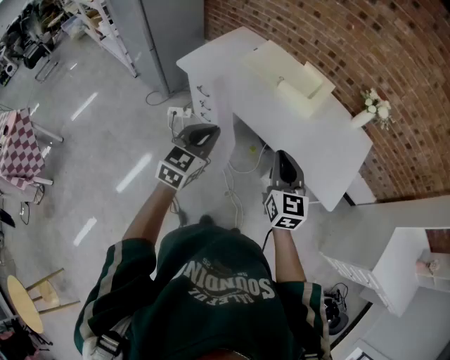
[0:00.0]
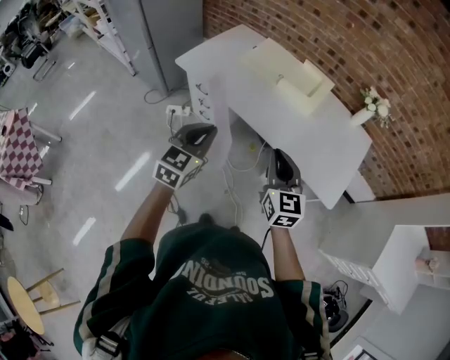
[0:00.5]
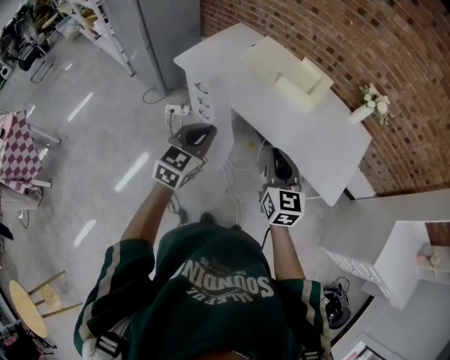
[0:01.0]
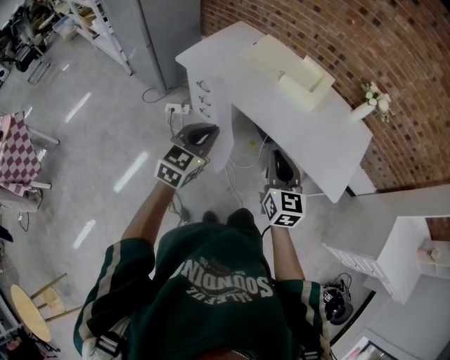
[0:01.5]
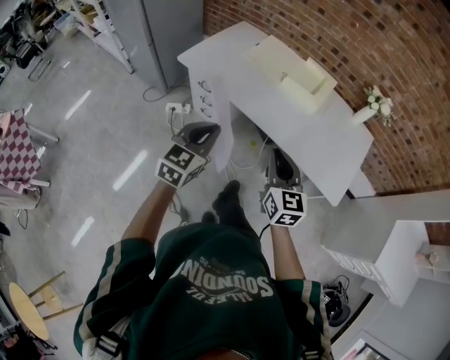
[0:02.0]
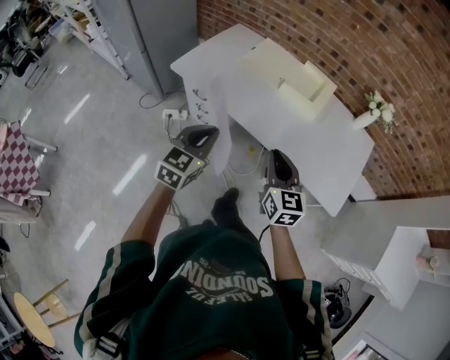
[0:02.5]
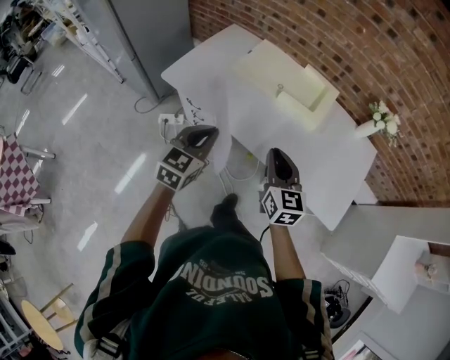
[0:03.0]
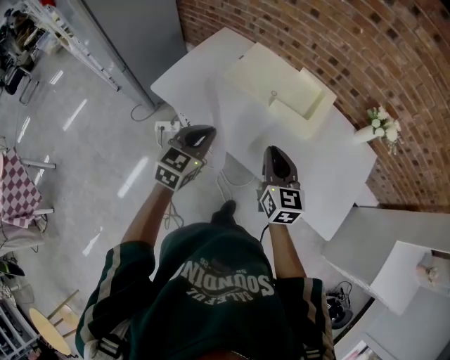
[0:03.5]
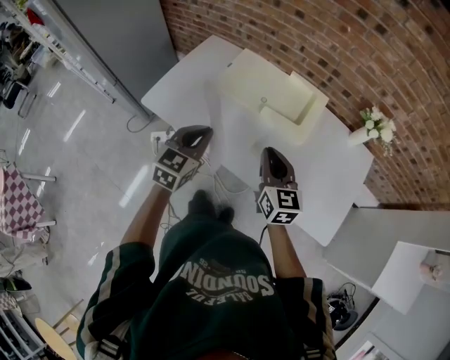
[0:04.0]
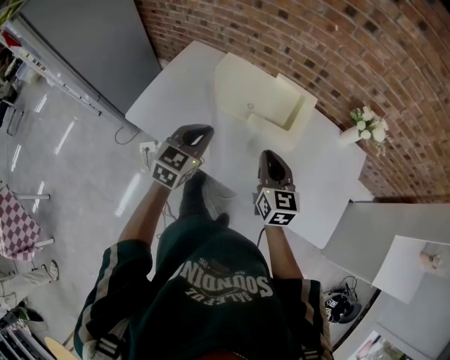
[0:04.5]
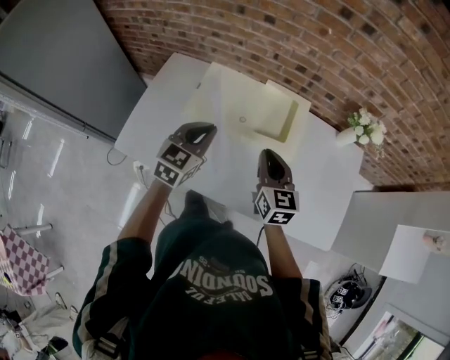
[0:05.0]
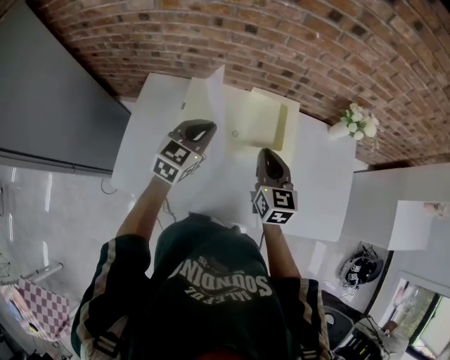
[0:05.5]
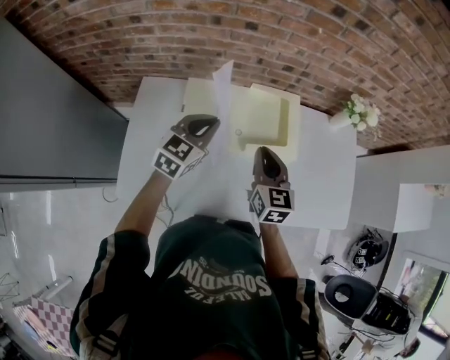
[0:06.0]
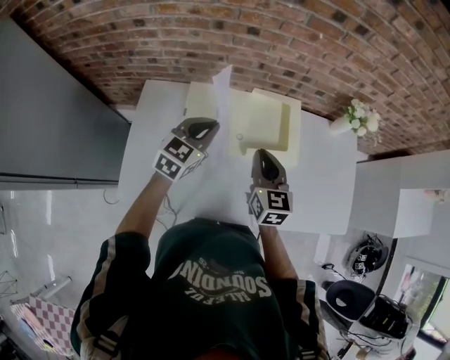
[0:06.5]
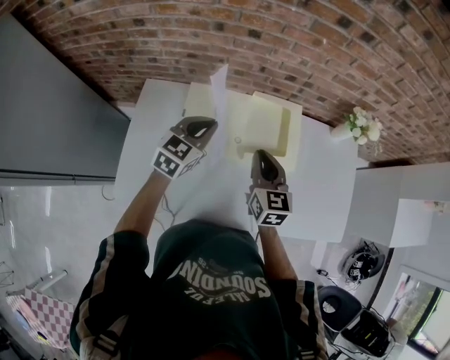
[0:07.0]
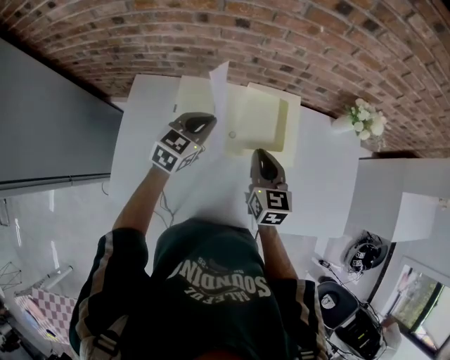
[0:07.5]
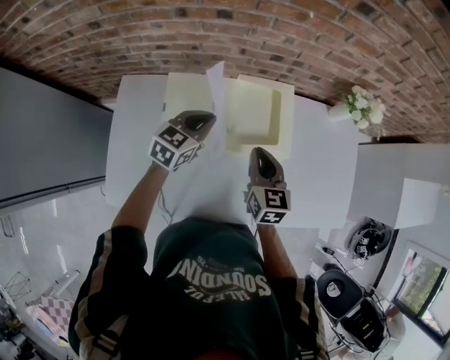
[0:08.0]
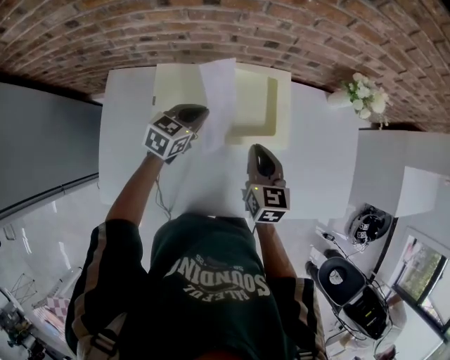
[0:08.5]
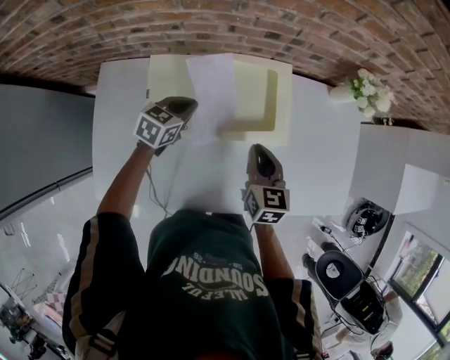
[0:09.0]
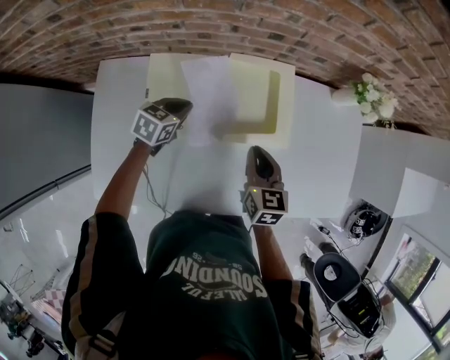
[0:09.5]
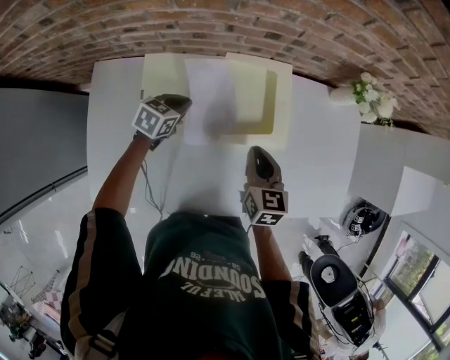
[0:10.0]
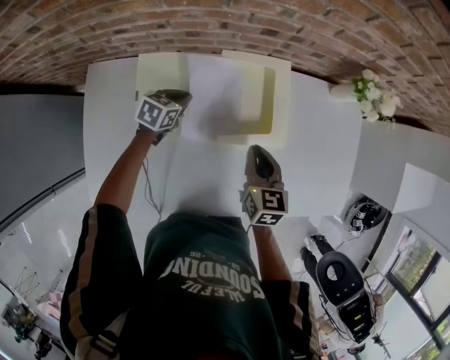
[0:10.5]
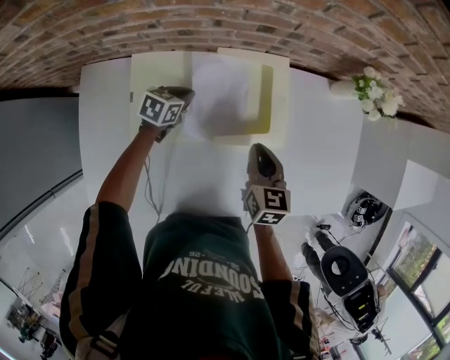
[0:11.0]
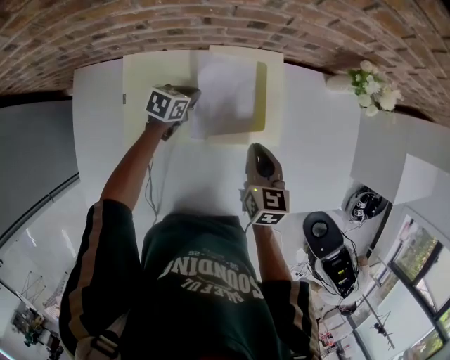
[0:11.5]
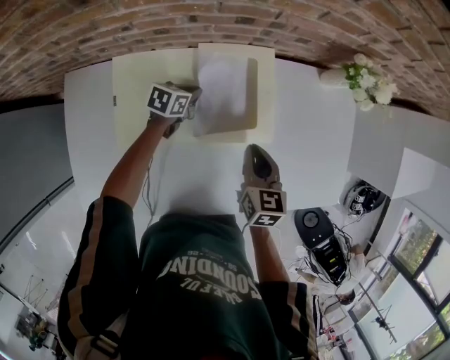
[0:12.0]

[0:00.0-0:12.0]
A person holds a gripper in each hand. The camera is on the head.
0:00.0 to 0:02.0: The right gripper moves to the left, about 5 cm.
0:02.0 to 0:04.0: The grippers both shift forward by approximately 30 cm.
0:04.0 to 0:06.0: The right gripper shifts by some 25 cm, and swivels some 30 degrees, while the left gripper changes place by some 30 cm, and rotates some 30 degrees.
0:06.0 to 0:08.0: Both grippers move forward and downward, roughly 10 cm.
0:08.0 to 0:10.0: The right gripper is displaced downward by roughly 5 cm; the left gripper heads downward, covering some 15 cm, and turns by about 20 degrees.
0:10.0 to 0:12.0: The right gripper ends up some 5 cm from where it was; the left gripper goes approximately 15 cm forward, to the right and downward.

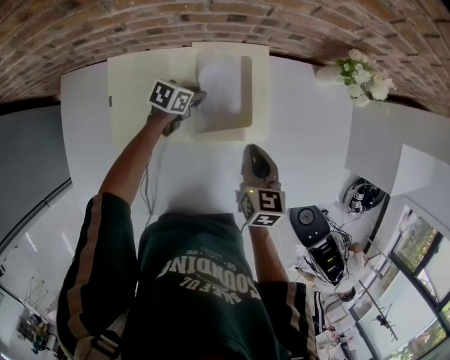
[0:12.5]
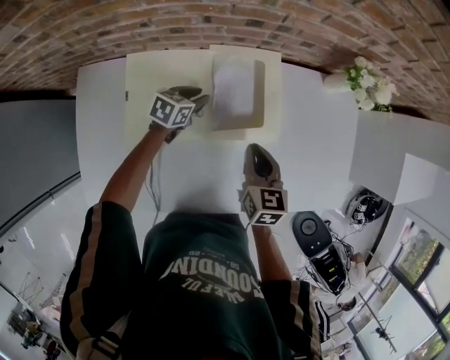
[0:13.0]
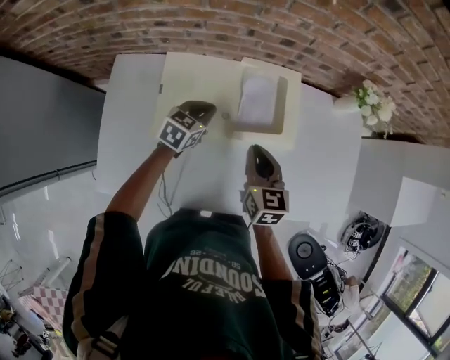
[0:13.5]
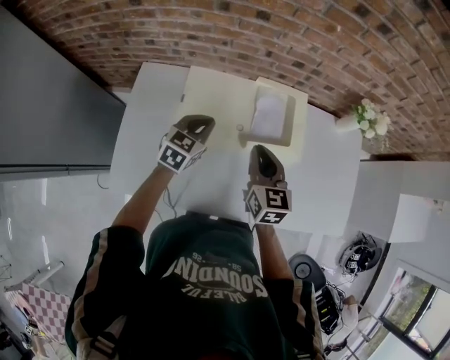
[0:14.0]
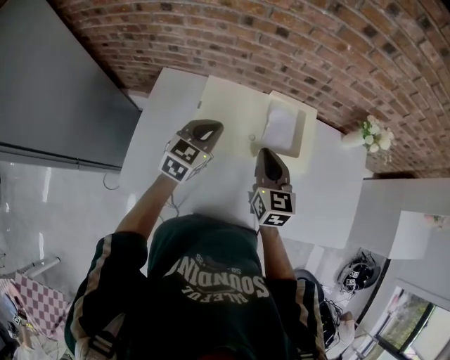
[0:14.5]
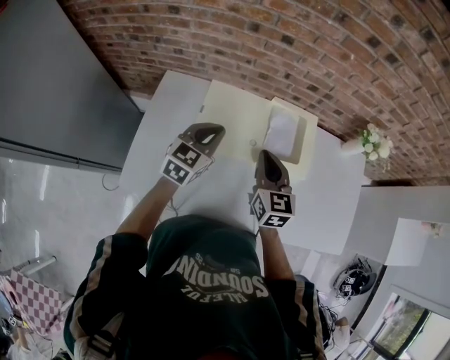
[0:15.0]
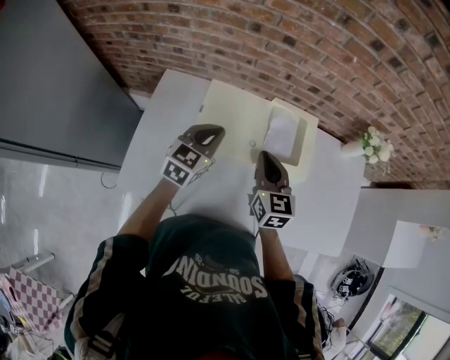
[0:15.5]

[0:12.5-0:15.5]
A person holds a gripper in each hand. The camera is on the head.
0:12.5 to 0:14.0: The left gripper goes roughly 20 cm upward, swivels roughly 40 degrees, and closes its fingers, while the right gripper moves some 20 cm, and changes its angle by some 20 degrees.
0:14.0 to 0:15.5: The left gripper heads upward, covering about 5 cm.

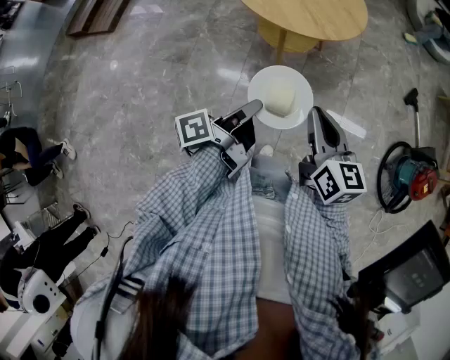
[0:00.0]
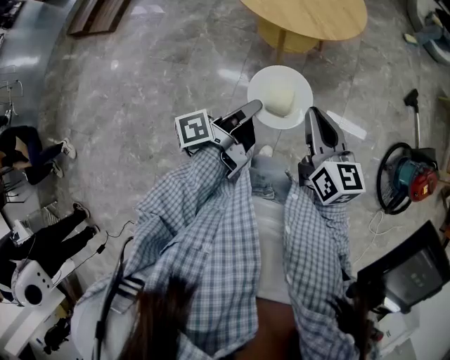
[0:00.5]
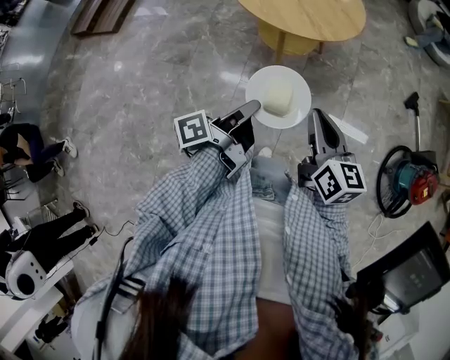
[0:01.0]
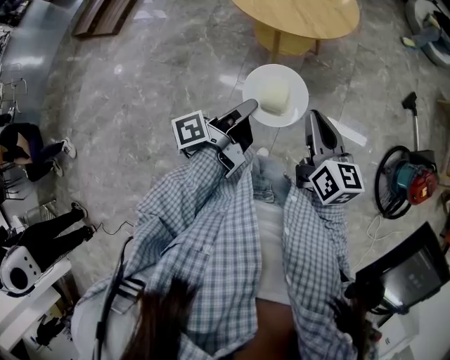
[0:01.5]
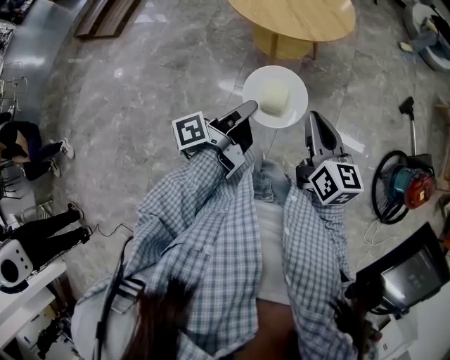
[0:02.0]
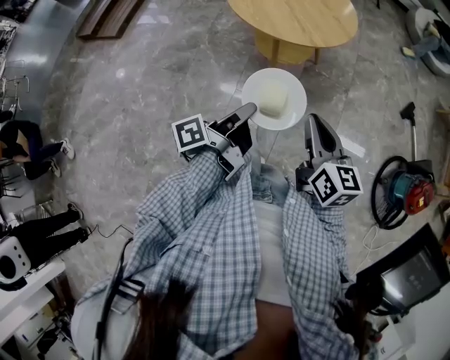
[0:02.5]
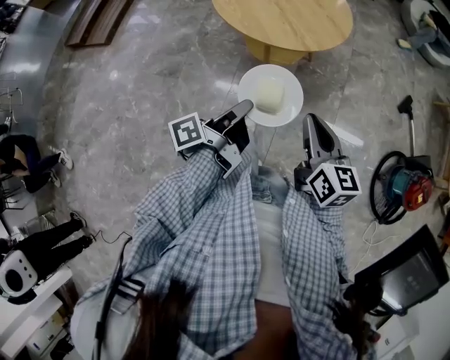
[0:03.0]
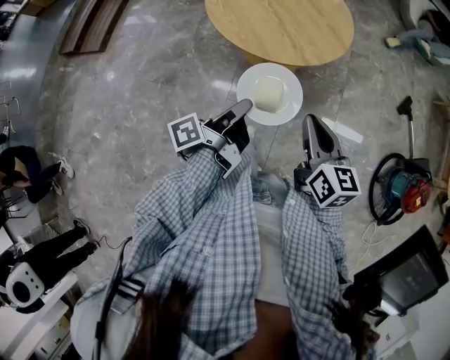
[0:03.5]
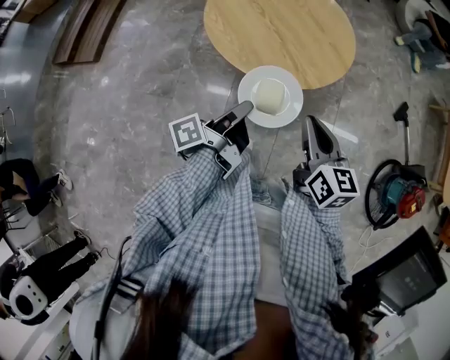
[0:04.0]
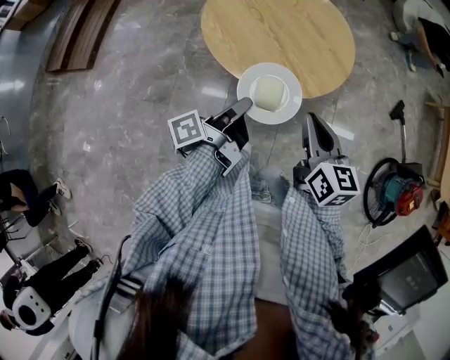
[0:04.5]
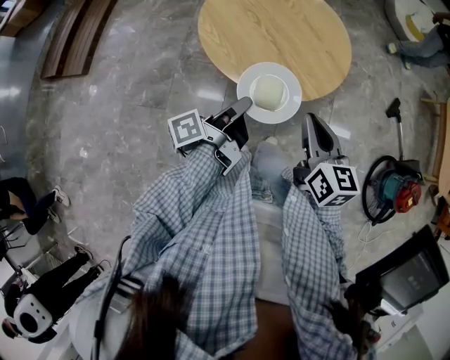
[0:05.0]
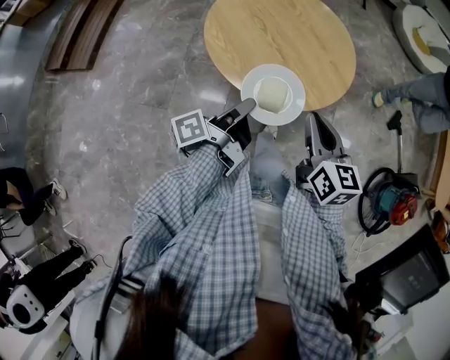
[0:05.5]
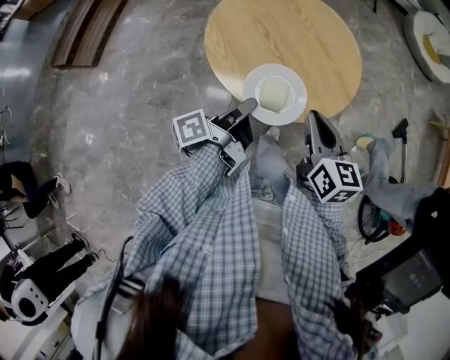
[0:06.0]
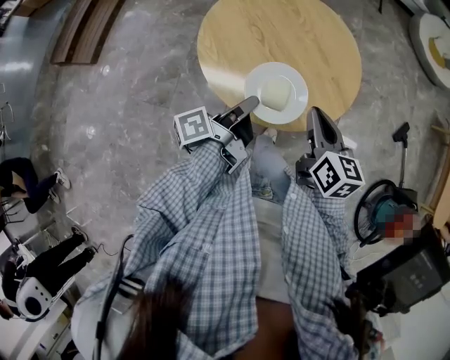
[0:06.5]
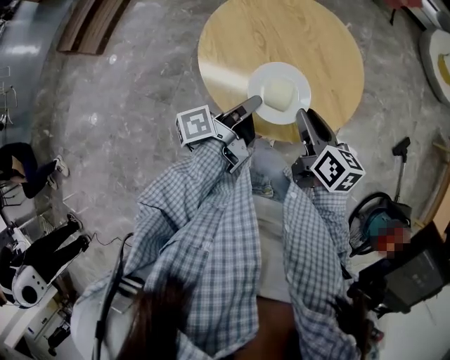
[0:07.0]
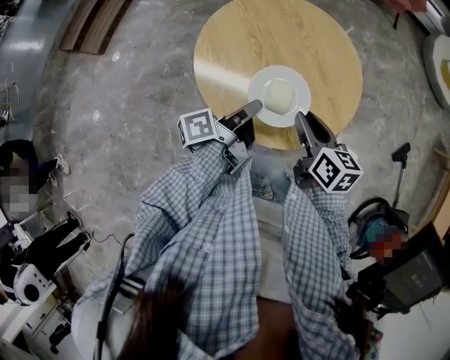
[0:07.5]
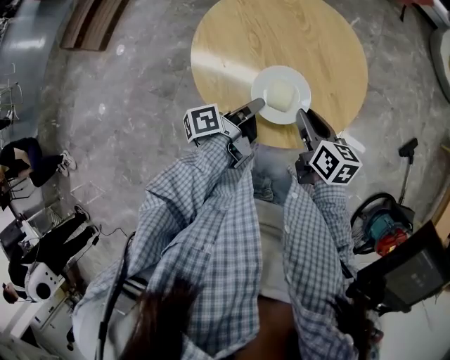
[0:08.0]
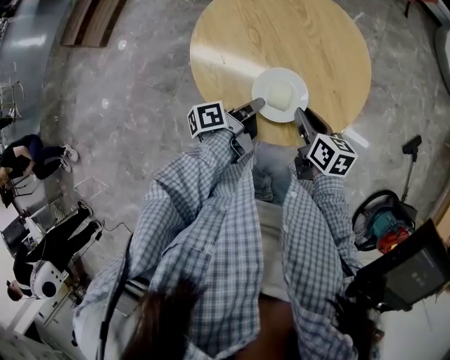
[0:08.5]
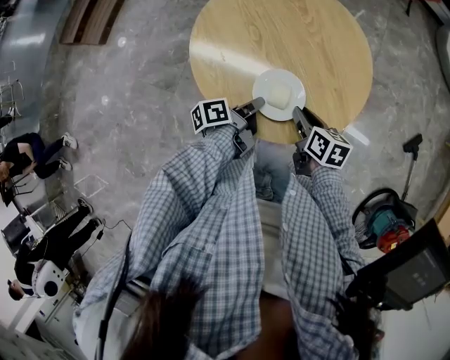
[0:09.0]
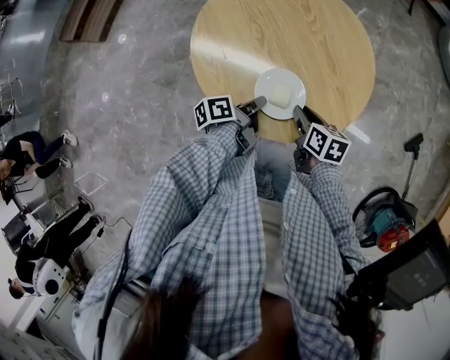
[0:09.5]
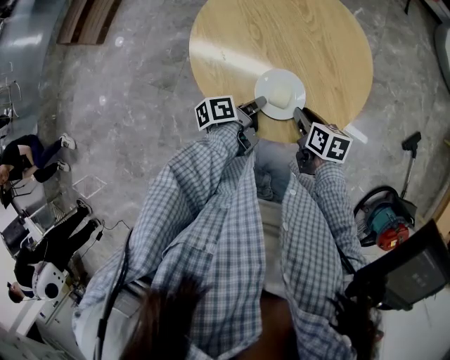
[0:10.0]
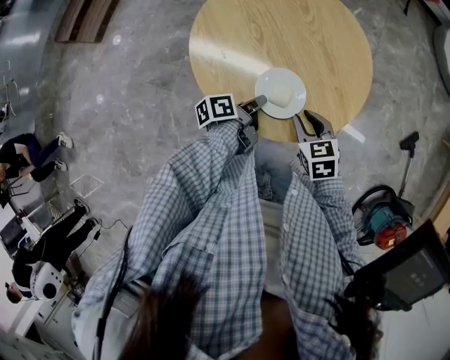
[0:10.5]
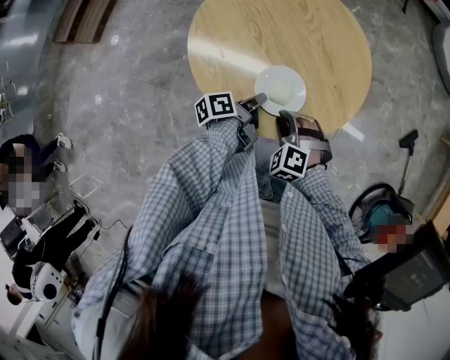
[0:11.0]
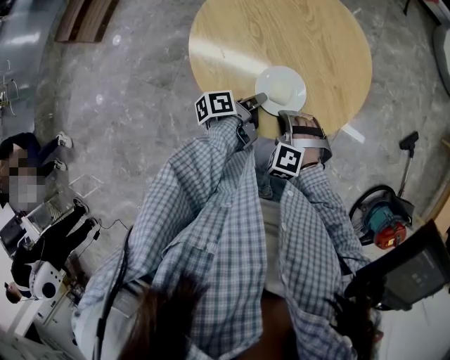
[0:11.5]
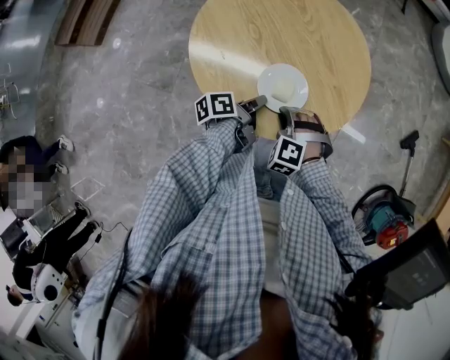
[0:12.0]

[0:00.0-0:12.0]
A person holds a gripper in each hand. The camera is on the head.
0:02.0 to 0:04.0: The right gripper shifts by about 20 cm.
0:04.0 to 0:06.0: The right gripper moves approximately 15 cm.
0:06.0 to 0:08.0: The right gripper shifts by roughly 15 cm, swivels about 20 degrees, and opens up.
0:08.0 to 0:10.0: The right gripper shifts about 10 cm downward.
0:10.0 to 0:12.0: The right gripper ends up roughly 5 cm from where it was, and twists roughly 100 degrees counterclockwise, seen from behind.
